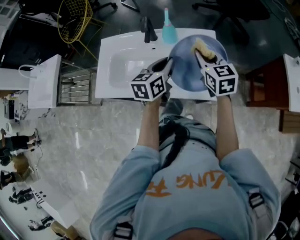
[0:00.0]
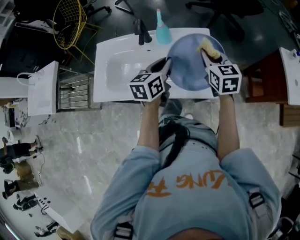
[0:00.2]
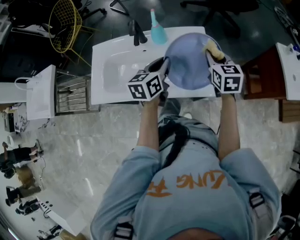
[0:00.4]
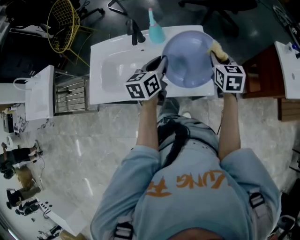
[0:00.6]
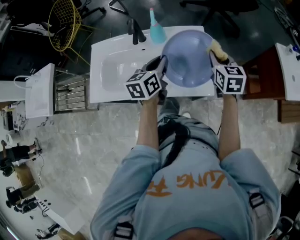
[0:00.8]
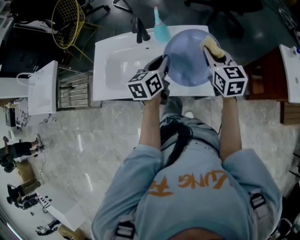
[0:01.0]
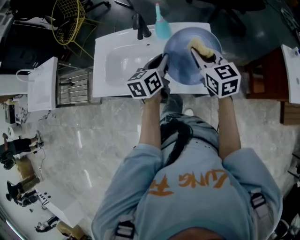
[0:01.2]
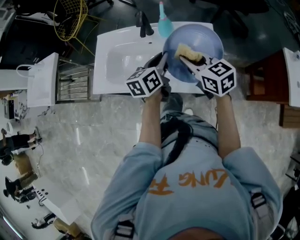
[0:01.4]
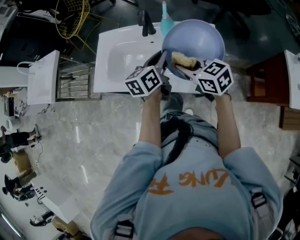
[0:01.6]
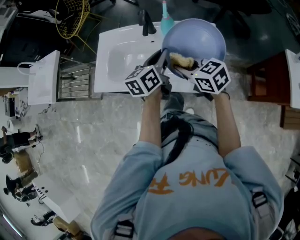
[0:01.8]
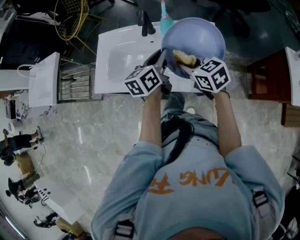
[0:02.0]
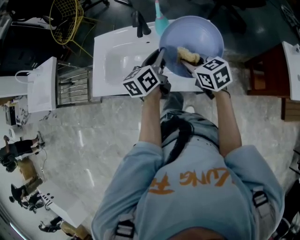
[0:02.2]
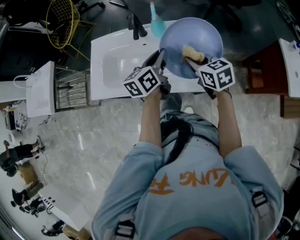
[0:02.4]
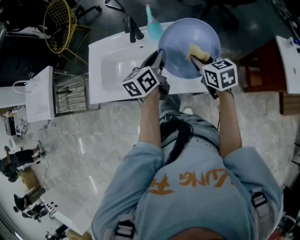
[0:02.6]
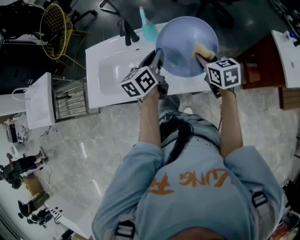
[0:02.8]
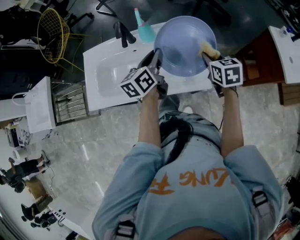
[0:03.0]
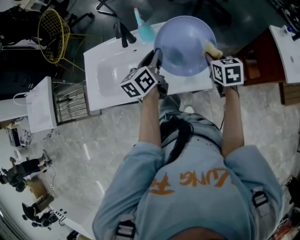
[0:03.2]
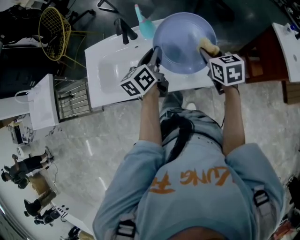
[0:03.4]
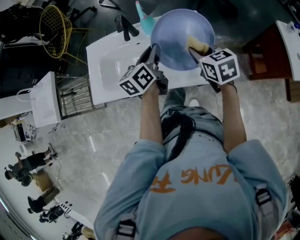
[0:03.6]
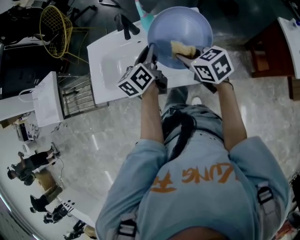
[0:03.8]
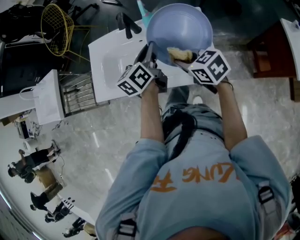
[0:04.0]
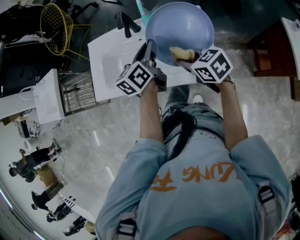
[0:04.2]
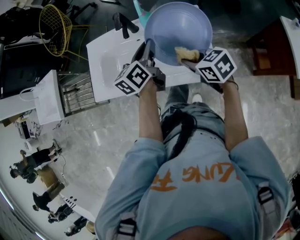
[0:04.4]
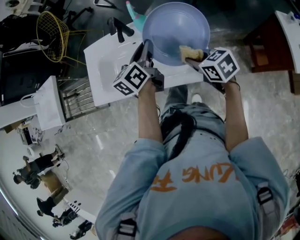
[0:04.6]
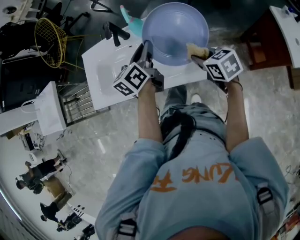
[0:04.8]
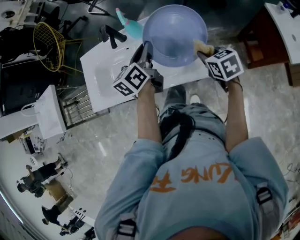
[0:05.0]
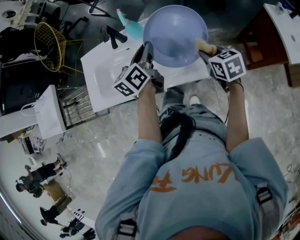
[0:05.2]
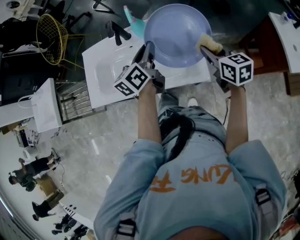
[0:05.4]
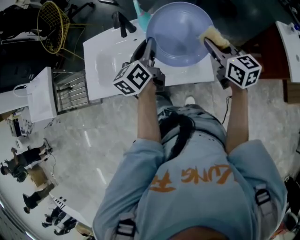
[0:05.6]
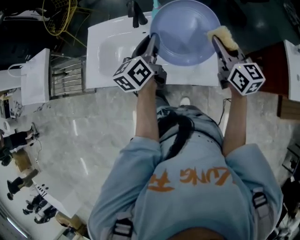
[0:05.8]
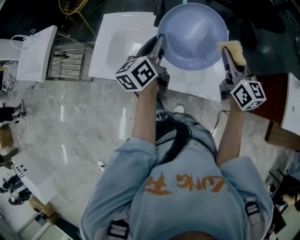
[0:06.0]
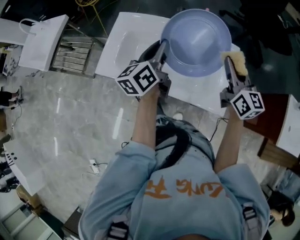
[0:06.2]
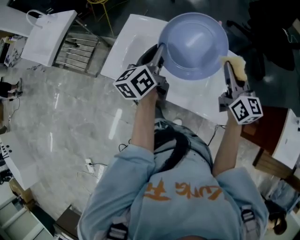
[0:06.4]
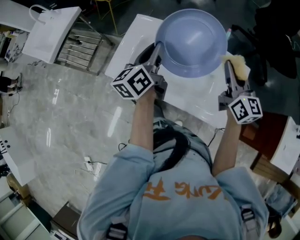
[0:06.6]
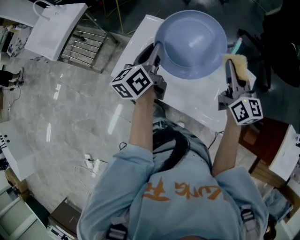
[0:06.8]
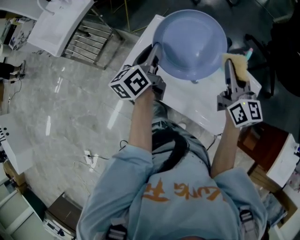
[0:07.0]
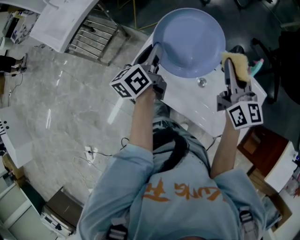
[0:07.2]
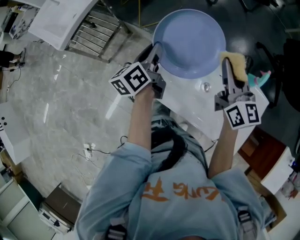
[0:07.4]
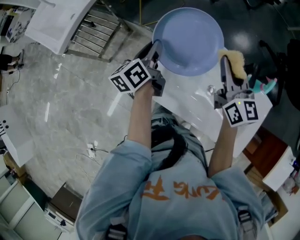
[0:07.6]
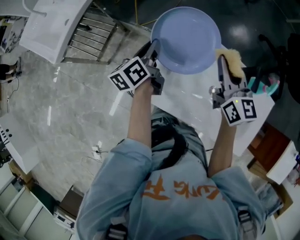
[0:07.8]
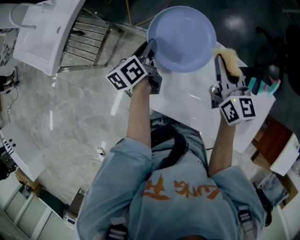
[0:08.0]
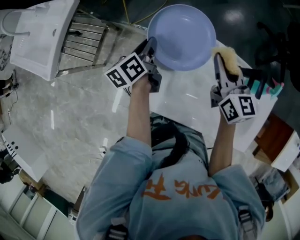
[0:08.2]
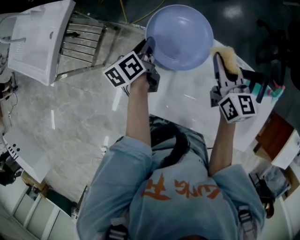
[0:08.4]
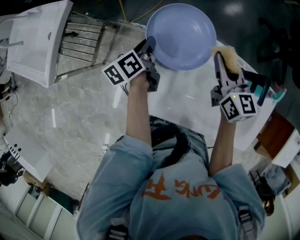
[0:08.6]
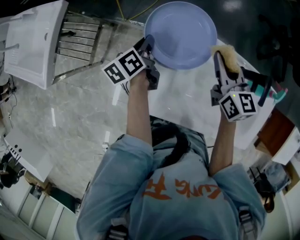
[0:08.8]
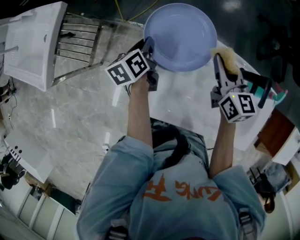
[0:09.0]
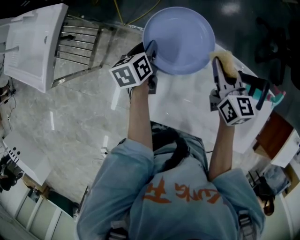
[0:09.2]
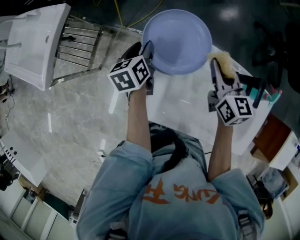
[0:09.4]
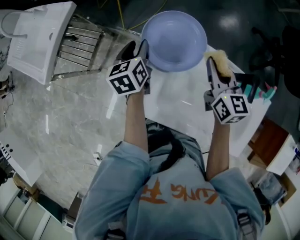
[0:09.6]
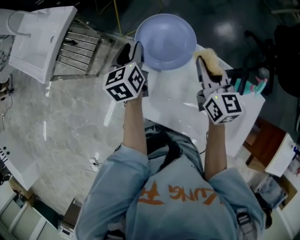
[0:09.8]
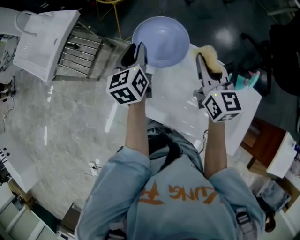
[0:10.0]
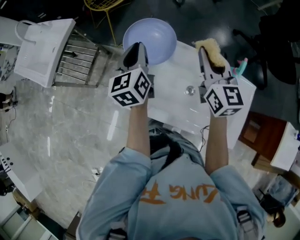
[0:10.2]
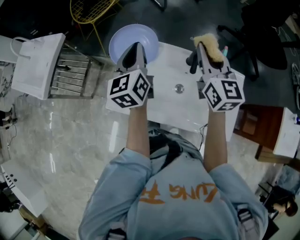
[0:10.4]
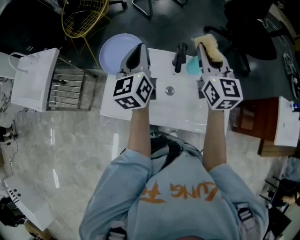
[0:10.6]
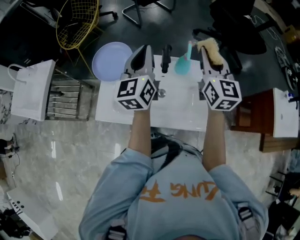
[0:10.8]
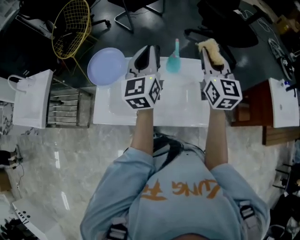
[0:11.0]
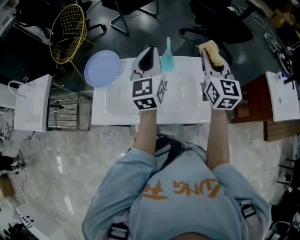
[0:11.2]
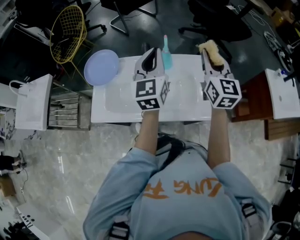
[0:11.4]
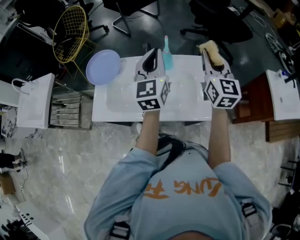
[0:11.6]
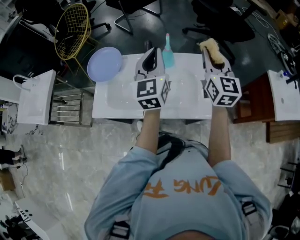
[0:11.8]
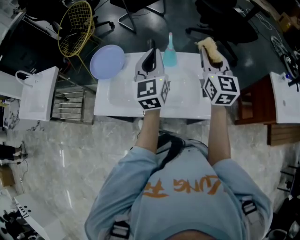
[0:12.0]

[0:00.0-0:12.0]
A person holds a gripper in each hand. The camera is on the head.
0:00.0 to 0:01.6: The right gripper changes place by roughly 10 cm, and turns by approximately 30 degrees.
0:01.6 to 0:03.0: The right gripper changes place by some 20 cm, and changes its angle by approximately 40 degrees.
0:03.0 to 0:04.4: The right gripper ends up roughly 15 cm from where it was, and rotates about 30 degrees.
0:04.4 to 0:06.0: The left gripper moves to the left, approximately 5 cm. Meanwhile the right gripper heads upward, forward and to the right, covering roughly 15 cm, and tilts its fingers approximately 30 degrees upward.
0:06.0 to 0:07.6: The pair of grippers is taken to the left and forward, about 40 cm. The left gripper turns by approximately 20 degrees.
0:07.6 to 0:09.0: Both grippers move downward and forward, approximately 15 cm. The left gripper swivels roughly 30 degrees.
0:09.0 to 0:10.4: Both grippers move upward, to the right and backward, approximately 30 cm. The right gripper changes its angle by approximately 20 degrees, while the left gripper rotates approximately 40 degrees, and opens and closes again.
0:10.4 to 0:12.0: The two grippers go about 25 cm to the right. The left gripper rotates approximately 20 degrees.

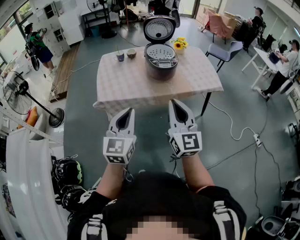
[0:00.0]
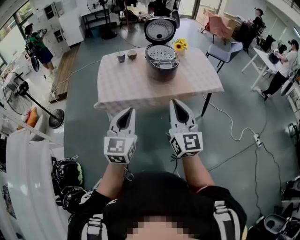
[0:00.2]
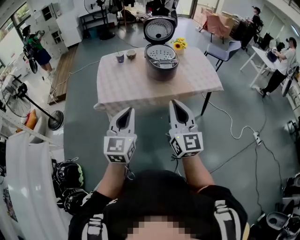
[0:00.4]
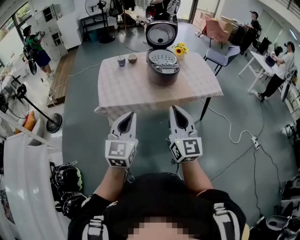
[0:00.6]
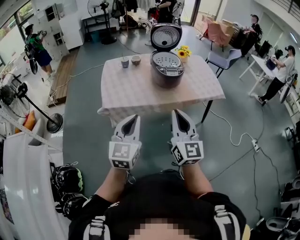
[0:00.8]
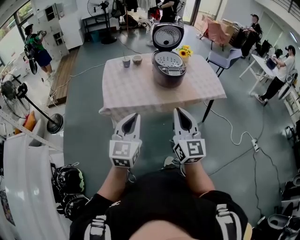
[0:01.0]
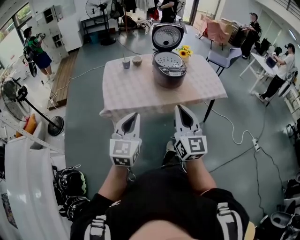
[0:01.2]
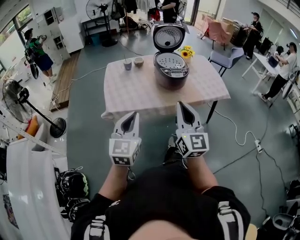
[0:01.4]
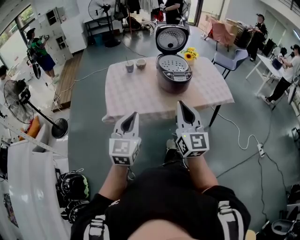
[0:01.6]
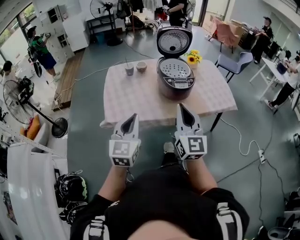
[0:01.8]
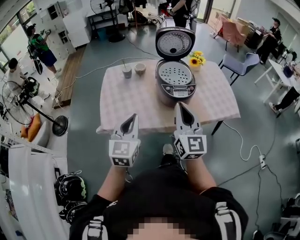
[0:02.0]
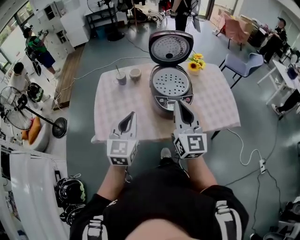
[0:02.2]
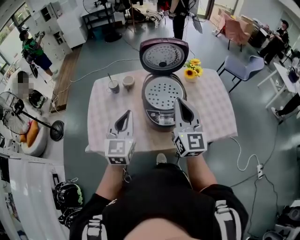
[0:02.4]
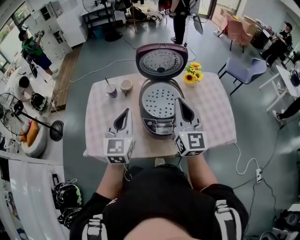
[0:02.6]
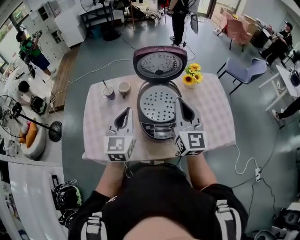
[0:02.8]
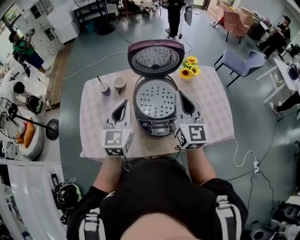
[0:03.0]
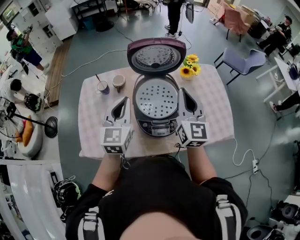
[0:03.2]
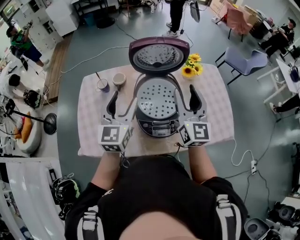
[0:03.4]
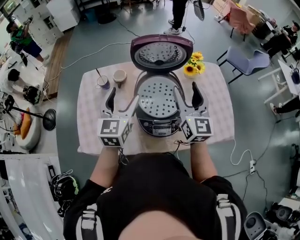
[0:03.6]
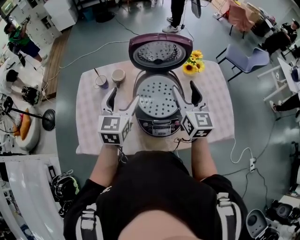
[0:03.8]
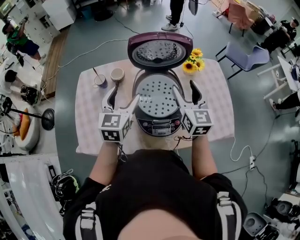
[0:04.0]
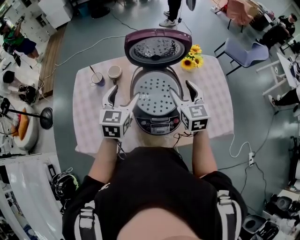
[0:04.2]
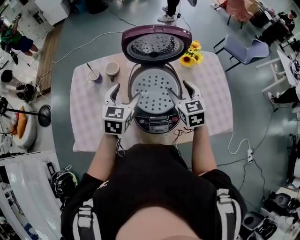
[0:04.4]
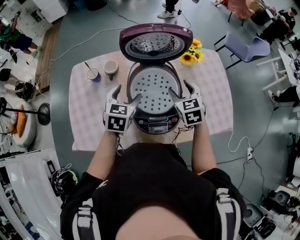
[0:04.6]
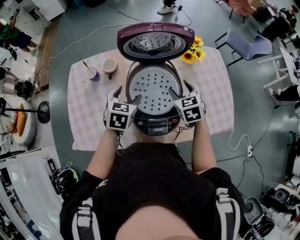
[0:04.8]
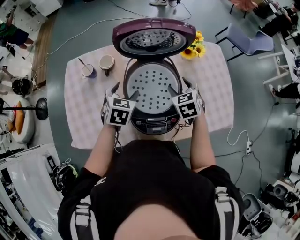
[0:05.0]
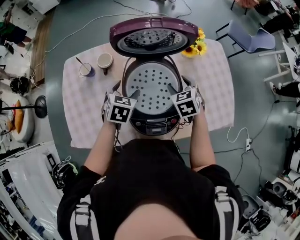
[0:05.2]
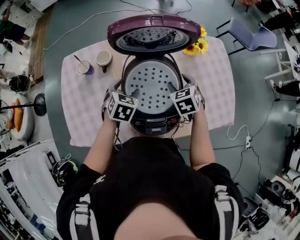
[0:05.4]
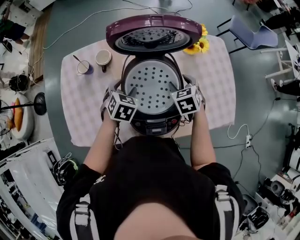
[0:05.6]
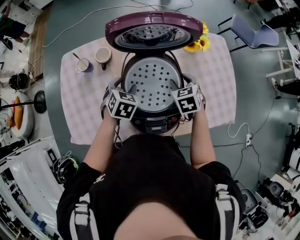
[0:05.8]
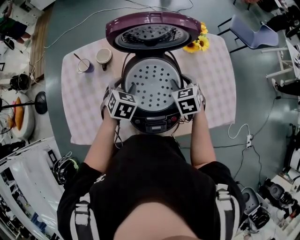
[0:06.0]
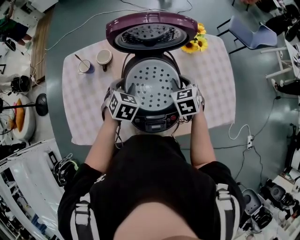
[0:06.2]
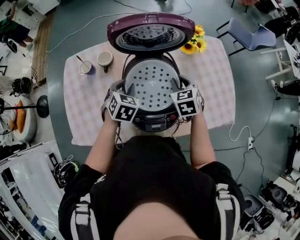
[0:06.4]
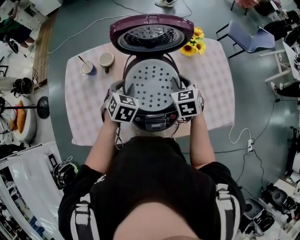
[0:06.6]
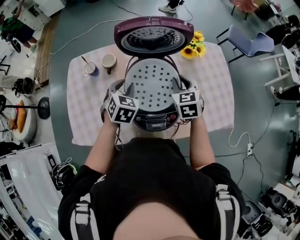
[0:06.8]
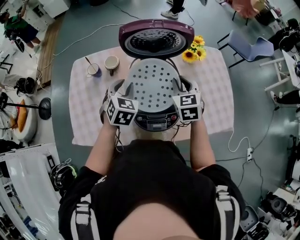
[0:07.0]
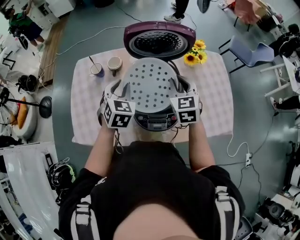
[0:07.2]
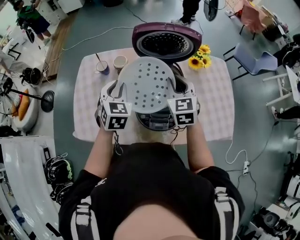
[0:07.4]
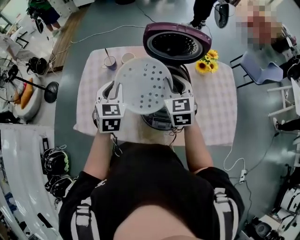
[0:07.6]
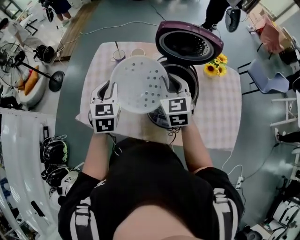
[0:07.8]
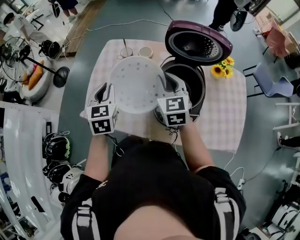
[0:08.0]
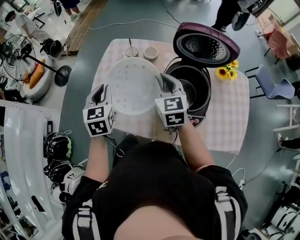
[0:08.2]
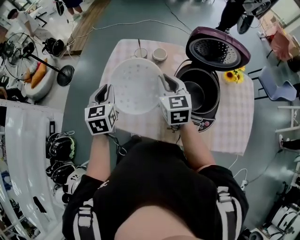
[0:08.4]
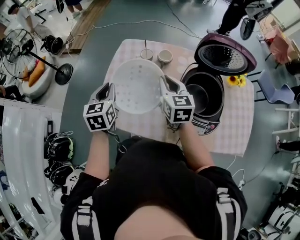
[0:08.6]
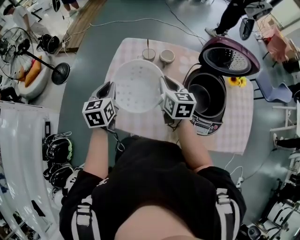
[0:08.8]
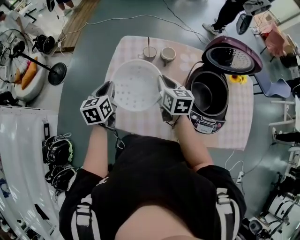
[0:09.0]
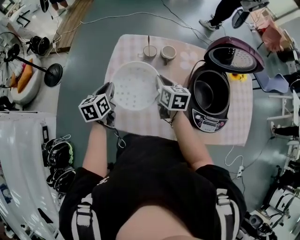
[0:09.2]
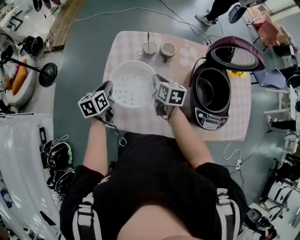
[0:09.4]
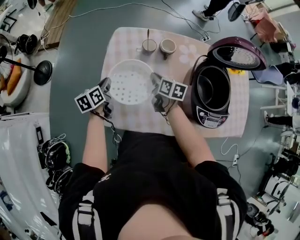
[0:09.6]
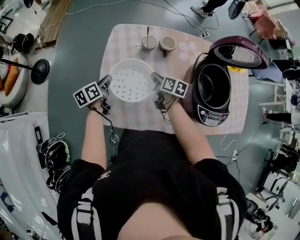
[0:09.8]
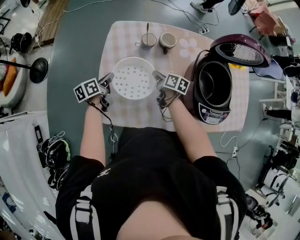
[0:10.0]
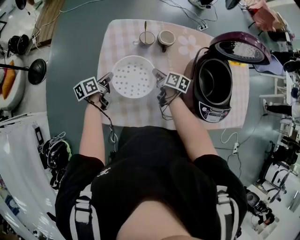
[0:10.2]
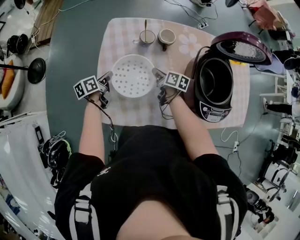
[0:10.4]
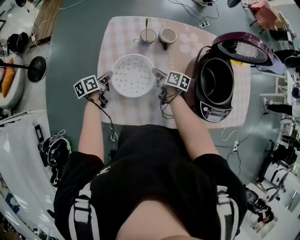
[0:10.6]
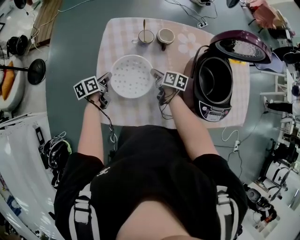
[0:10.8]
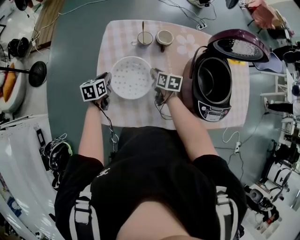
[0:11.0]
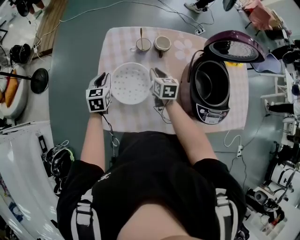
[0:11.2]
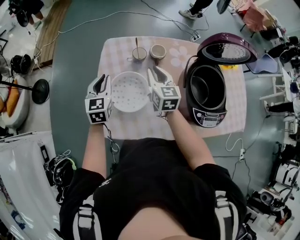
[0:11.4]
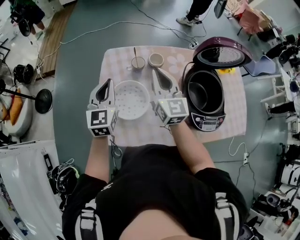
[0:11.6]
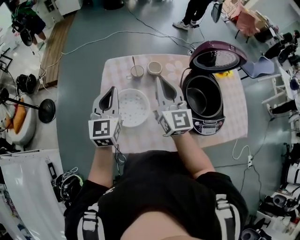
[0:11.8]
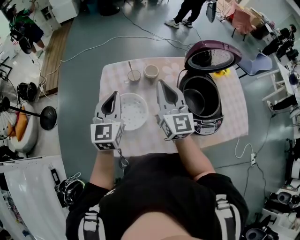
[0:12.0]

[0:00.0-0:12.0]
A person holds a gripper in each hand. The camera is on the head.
0:00.0 to 0:01.6: The two grippers go roughly 15 cm forward and to the left.
0:01.6 to 0:03.0: The pair of grippers is taken forward, roughly 50 cm.
0:03.0 to 0:04.4: Both grippers move downward and forward, approximately 15 cm. The left gripper swivels roughly 20 degrees, and opens its fingers; the right gripper points its fingers roughly 40 degrees further downward, and opens up.
0:04.4 to 0:06.0: Both grippers move downward and forward, about 15 cm. The left gripper rotates approximately 30 degrees, and closes its fingers. The right gripper rotates roughly 20 degrees, and closes.
0:06.0 to 0:07.6: The right gripper heads upward and to the left, covering approximately 20 cm, and swivels some 30 degrees; the left gripper goes roughly 20 cm upward, to the left and backward, rotates approximately 30 degrees, and closes up.
0:07.6 to 0:09.0: The grippers both shift to the left by some 30 cm. The left gripper changes its angle by some 30 degrees, while the right gripper turns by about 30 degrees.
0:09.0 to 0:10.4: The right gripper travels downward by roughly 20 cm, and changes its angle by some 40 degrees. Meanwhile the left gripper goes some 20 cm downward and forward, and swivels about 40 degrees.
0:10.4 to 0:12.0: Both grippers travel together upward, some 35 cm. The left gripper rolls clockwise, seen from behind, by approximately 60 degrees; the right gripper tips its fingers upward by about 40 degrees.
